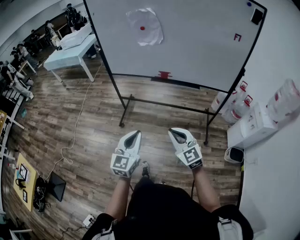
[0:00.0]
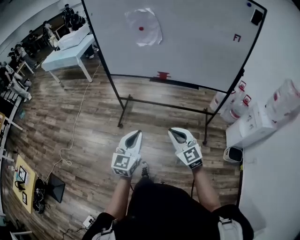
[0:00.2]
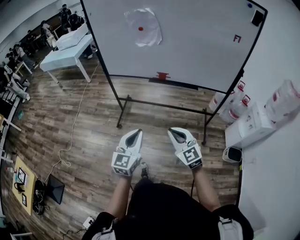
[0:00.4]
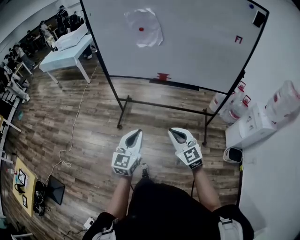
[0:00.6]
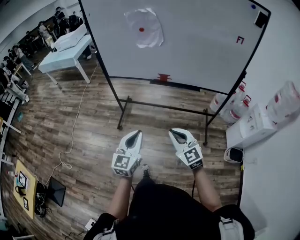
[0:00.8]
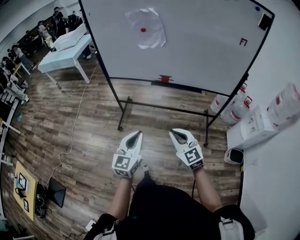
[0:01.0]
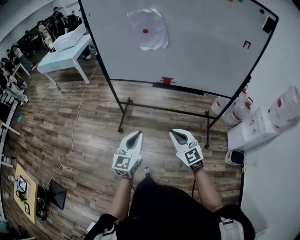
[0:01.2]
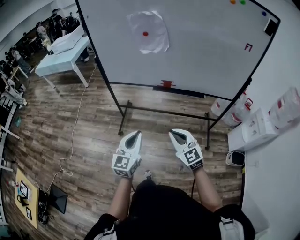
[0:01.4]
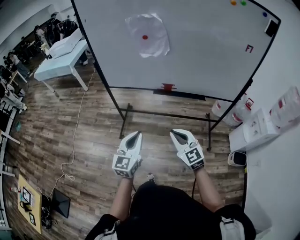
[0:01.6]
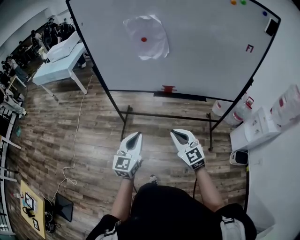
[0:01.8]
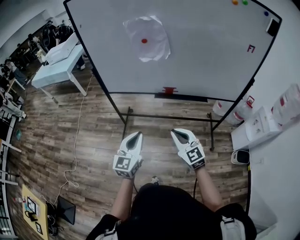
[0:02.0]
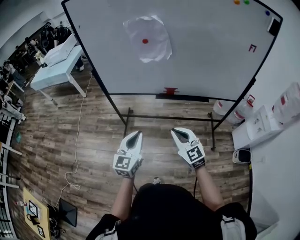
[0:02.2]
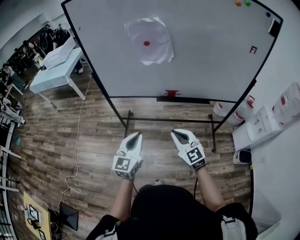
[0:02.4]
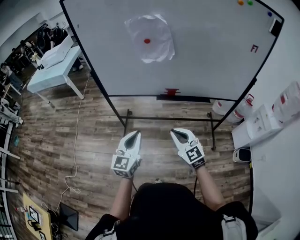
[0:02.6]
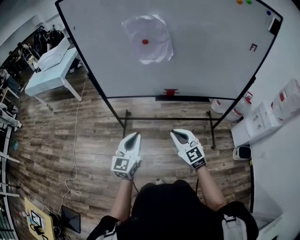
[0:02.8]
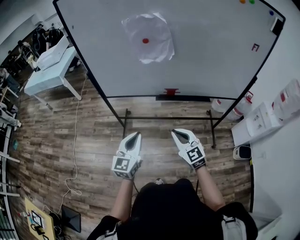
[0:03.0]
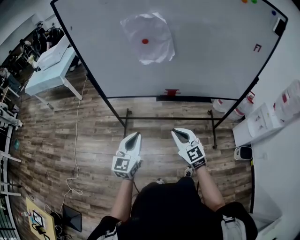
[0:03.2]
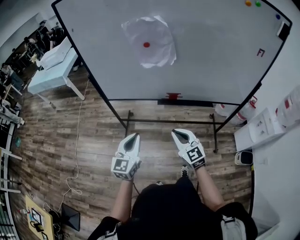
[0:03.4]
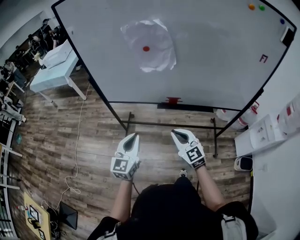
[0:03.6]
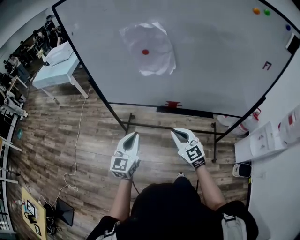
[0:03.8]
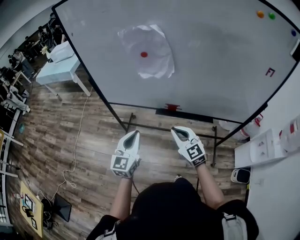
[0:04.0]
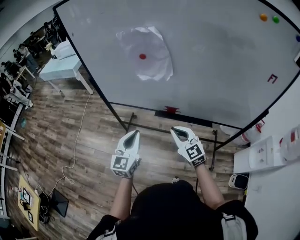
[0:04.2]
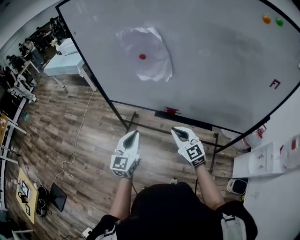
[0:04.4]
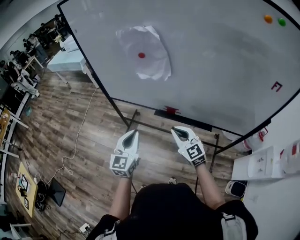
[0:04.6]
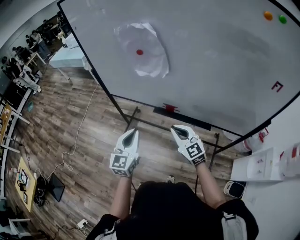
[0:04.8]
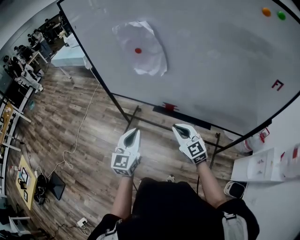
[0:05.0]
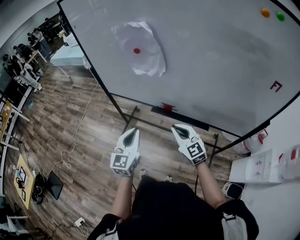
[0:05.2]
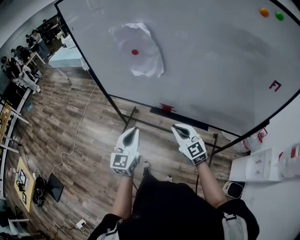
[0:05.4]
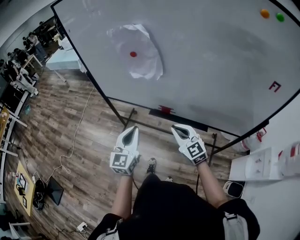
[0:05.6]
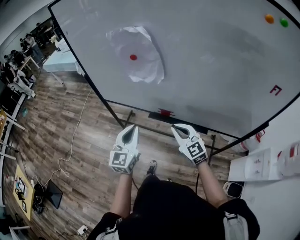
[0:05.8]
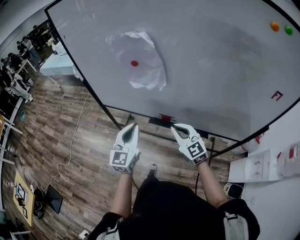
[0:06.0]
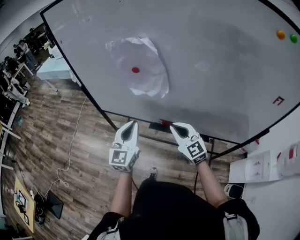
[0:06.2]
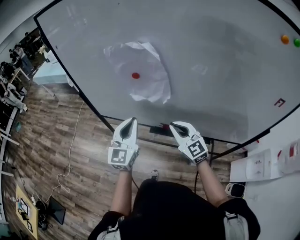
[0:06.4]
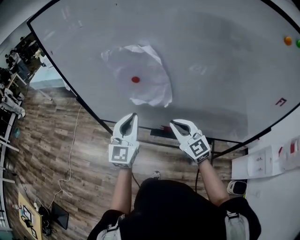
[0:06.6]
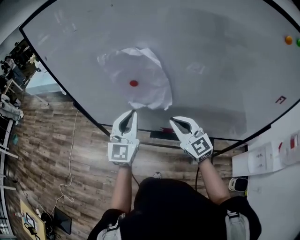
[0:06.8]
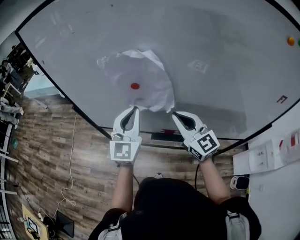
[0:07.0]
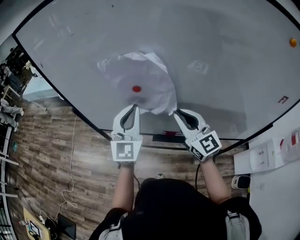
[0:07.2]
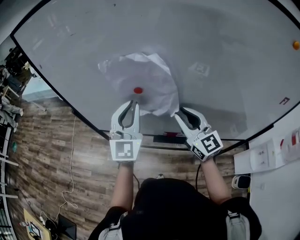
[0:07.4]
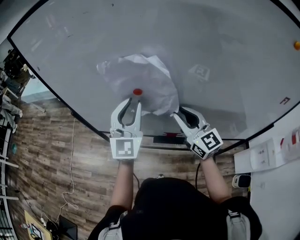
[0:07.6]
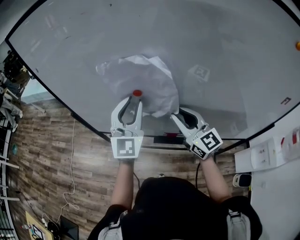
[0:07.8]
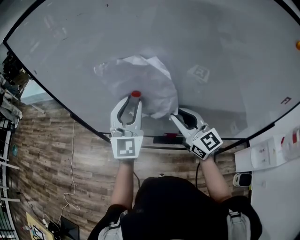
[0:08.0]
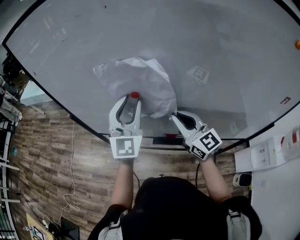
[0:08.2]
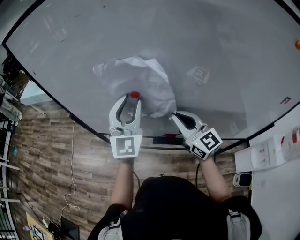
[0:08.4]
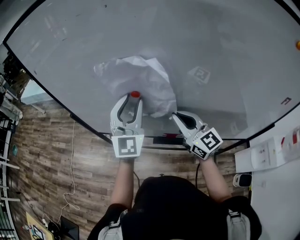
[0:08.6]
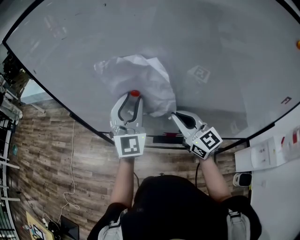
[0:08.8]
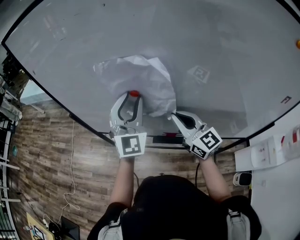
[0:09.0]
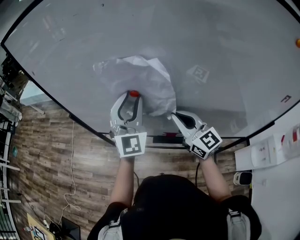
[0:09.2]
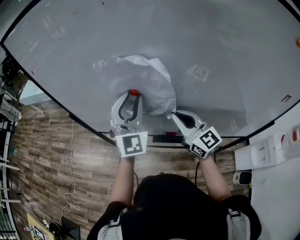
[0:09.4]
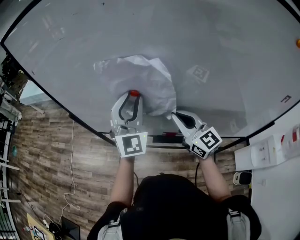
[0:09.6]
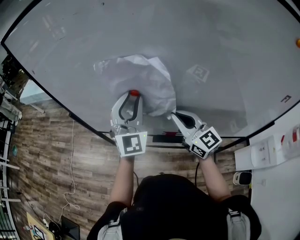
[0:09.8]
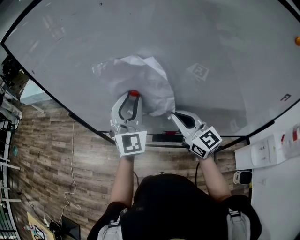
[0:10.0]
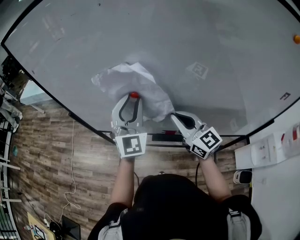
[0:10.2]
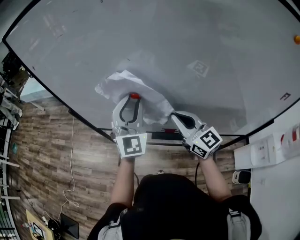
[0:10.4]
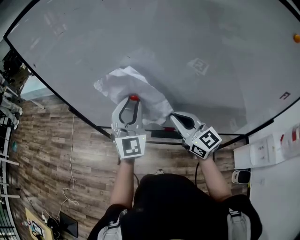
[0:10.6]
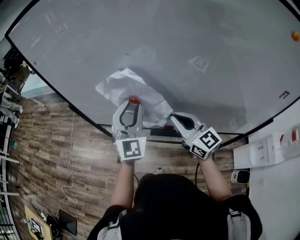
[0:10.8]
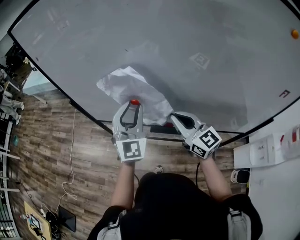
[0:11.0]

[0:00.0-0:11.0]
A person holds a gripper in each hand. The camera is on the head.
0:00.0 to 0:01.6: Both grippers move forward, roughly 20 cm.
0:01.6 to 0:03.2: The left gripper heads forward and to the left, covering some 15 cm. The right gripper heads forward, covering roughly 10 cm.
0:03.2 to 0:04.8: Both grippers move to the right and forward, approximately 20 cm. The right gripper rotates approximately 20 degrees. Meanwhile the left gripper changes its angle by about 20 degrees.
0:04.8 to 0:06.2: The grippers both shift forward by roughly 10 cm.
0:06.2 to 0:07.8: Both grippers move forward and upward, about 20 cm. The left gripper rotates some 20 degrees, and opens its fingers. Meanwhile the right gripper rotates some 20 degrees, and opens up.
0:07.8 to 0:09.4: The right gripper closes up.
0:09.4 to 0:11.0: The left gripper heads backward and downward, covering approximately 10 cm; the right gripper moves backward, about 5 cm.

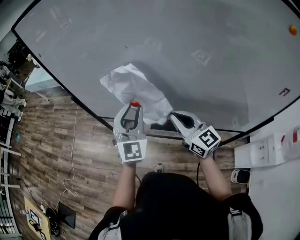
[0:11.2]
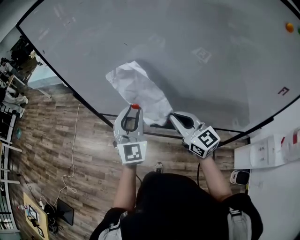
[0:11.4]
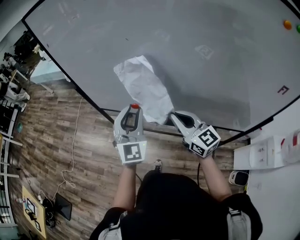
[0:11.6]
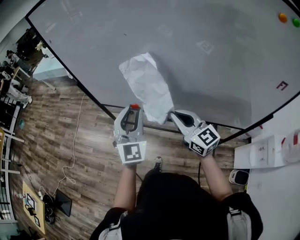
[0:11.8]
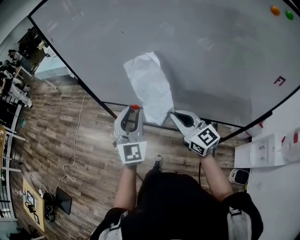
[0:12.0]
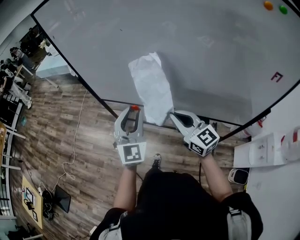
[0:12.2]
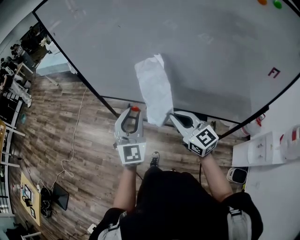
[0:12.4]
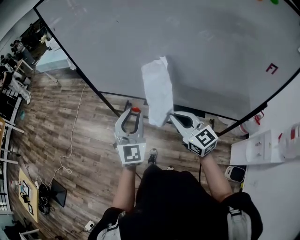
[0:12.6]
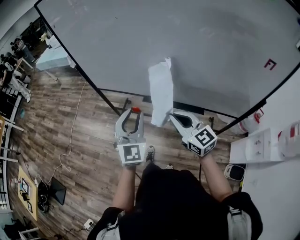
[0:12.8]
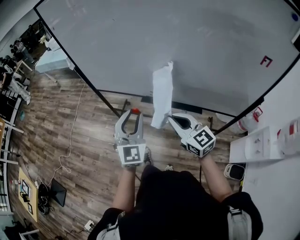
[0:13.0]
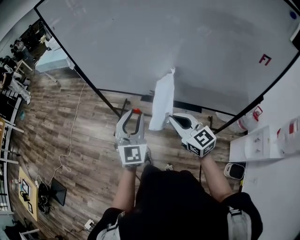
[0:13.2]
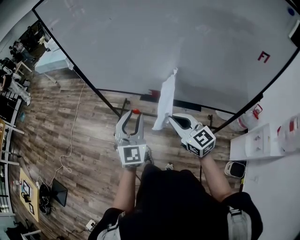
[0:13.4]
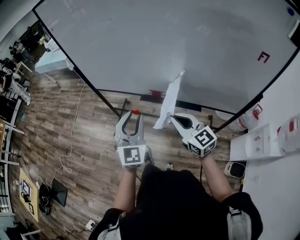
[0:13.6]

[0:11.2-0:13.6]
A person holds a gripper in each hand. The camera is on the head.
0:11.2 to 0:12.4: Both grippers travel together backward, roughly 15 cm.
0:12.4 to 0:13.6: Both grippers move backward, some 10 cm.

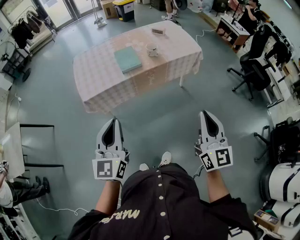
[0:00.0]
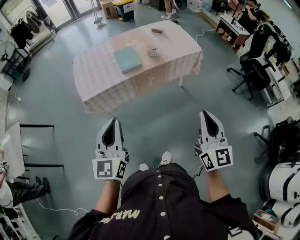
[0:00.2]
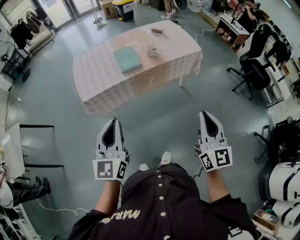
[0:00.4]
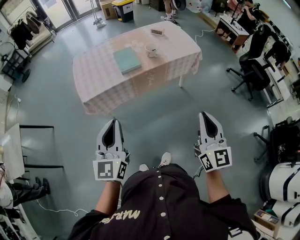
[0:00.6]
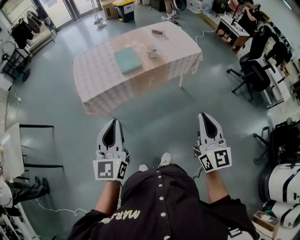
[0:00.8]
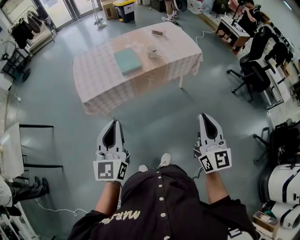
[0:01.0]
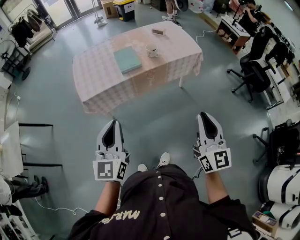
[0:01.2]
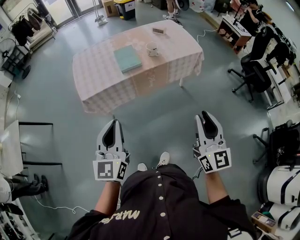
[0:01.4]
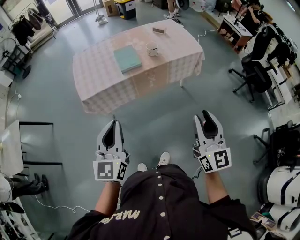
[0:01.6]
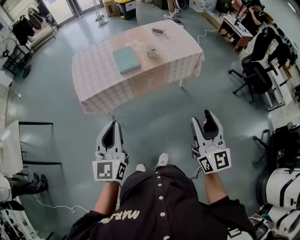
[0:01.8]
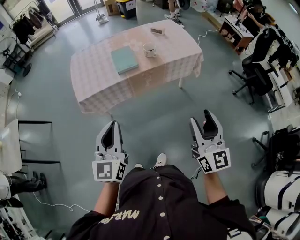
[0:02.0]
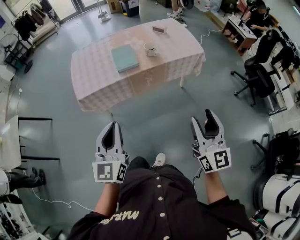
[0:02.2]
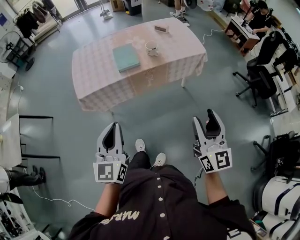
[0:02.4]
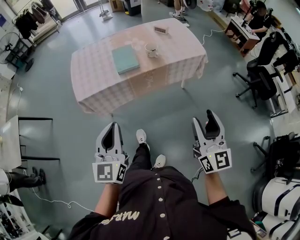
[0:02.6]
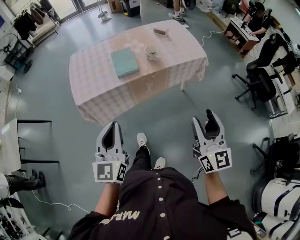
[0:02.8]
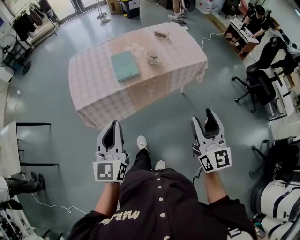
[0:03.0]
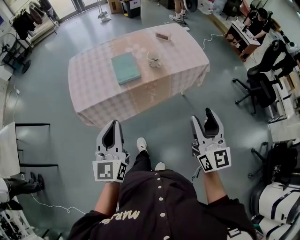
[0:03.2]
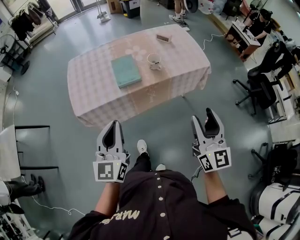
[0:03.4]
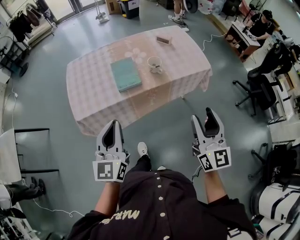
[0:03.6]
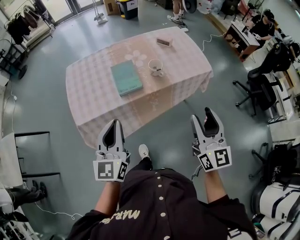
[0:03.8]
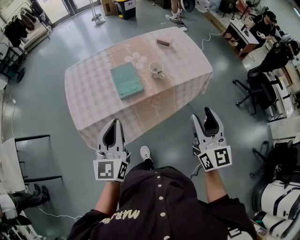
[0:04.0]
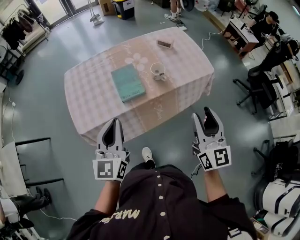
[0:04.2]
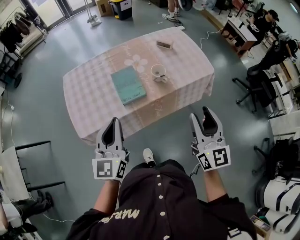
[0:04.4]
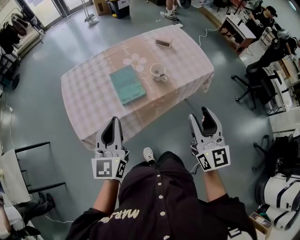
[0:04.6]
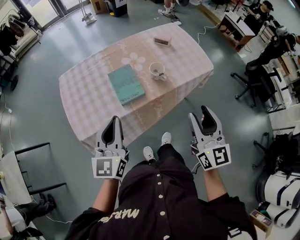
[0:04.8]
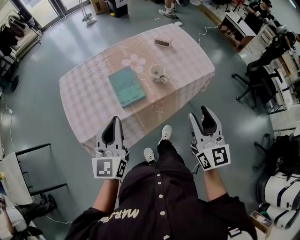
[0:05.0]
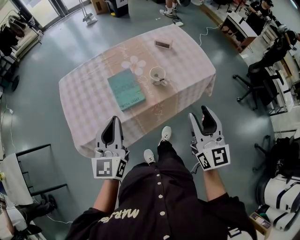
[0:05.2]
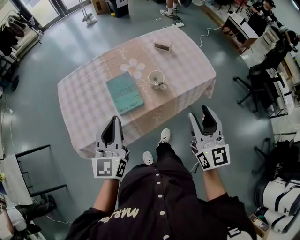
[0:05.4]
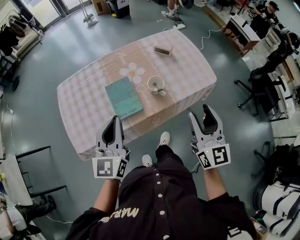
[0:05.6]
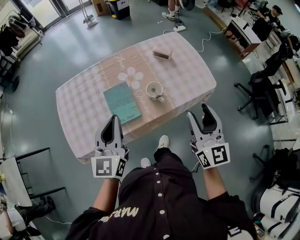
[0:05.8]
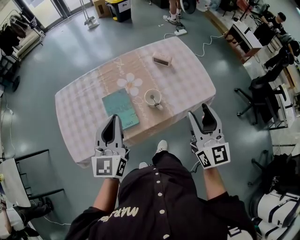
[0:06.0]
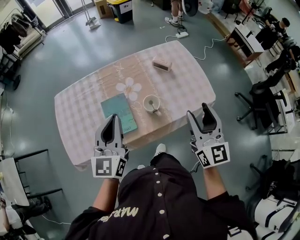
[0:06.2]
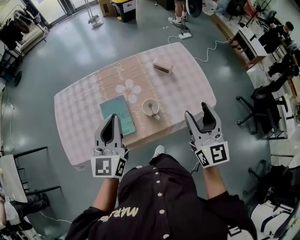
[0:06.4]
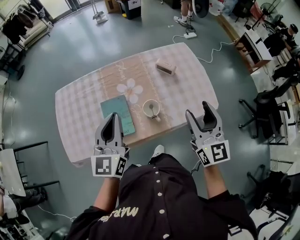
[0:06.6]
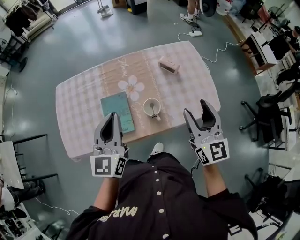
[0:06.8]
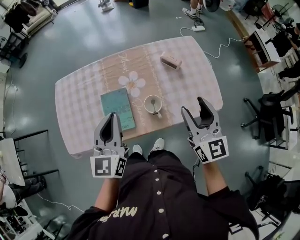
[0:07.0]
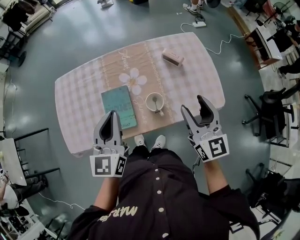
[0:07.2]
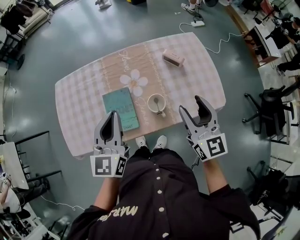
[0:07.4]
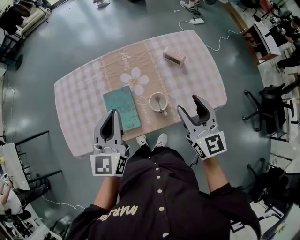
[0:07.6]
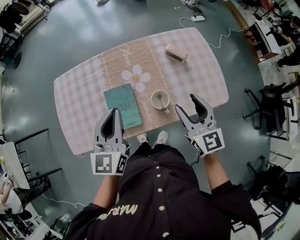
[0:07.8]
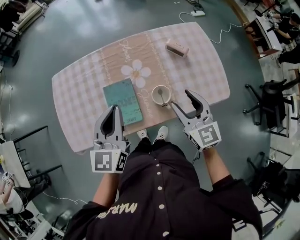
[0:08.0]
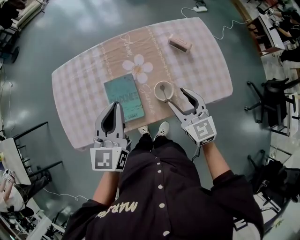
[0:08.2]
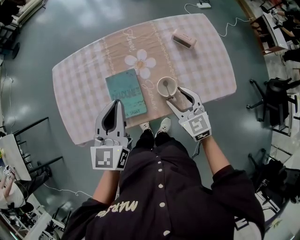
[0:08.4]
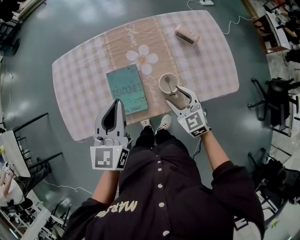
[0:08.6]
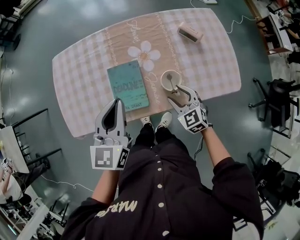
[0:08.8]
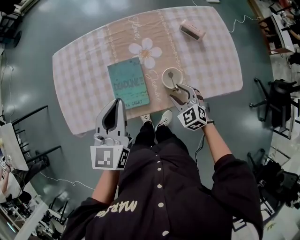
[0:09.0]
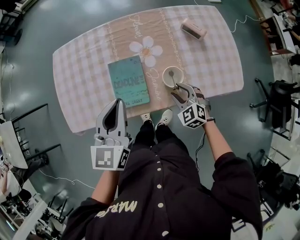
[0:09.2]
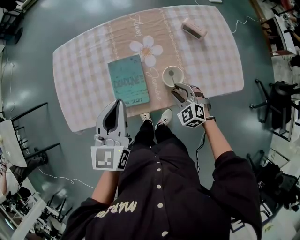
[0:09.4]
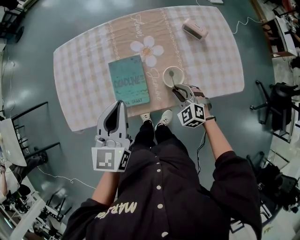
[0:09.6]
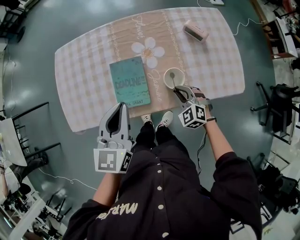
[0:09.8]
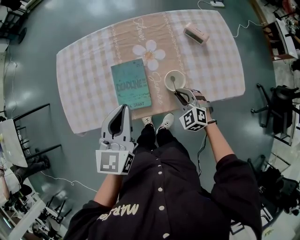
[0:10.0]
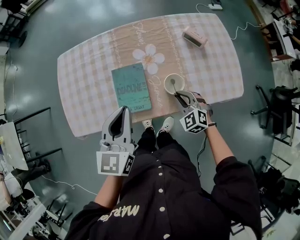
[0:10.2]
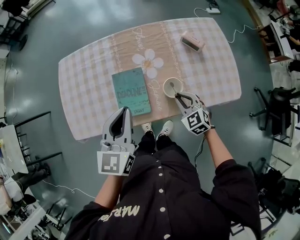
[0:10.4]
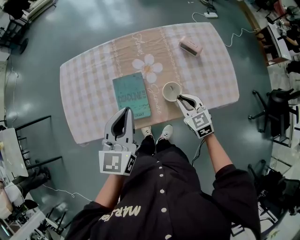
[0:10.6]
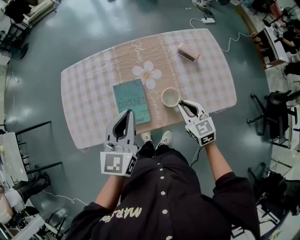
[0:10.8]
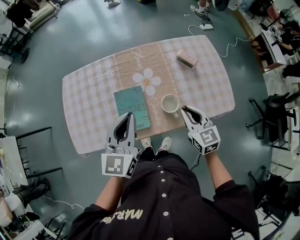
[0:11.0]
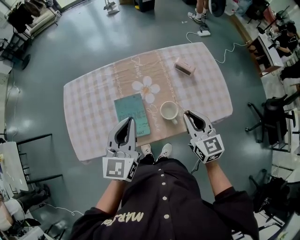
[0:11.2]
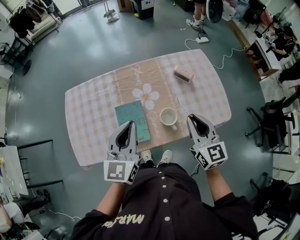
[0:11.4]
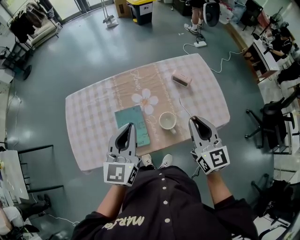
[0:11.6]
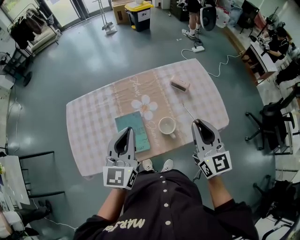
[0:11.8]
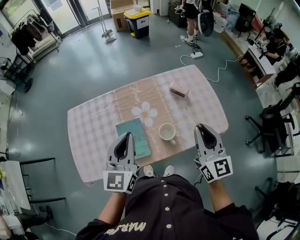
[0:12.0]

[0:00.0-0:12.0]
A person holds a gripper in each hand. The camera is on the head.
0:00.0 to 0:01.6: The right gripper opens its fingers.
0:01.6 to 0:03.0: The two grippers go about 10 cm forward. The right gripper opens up.
0:03.0 to 0:04.4: The left gripper shifts some 20 cm forward. The right gripper is displaced forward and to the left by some 20 cm.
0:04.4 to 0:06.0: Both grippers travel together forward, approximately 20 cm.
0:06.0 to 0:07.6: The left gripper travels forward by some 10 cm; the right gripper is displaced forward and downward by about 15 cm.
0:07.6 to 0:09.0: The right gripper moves downward, some 25 cm, and points its fingers approximately 30 degrees further downward. The left gripper is displaced downward by approximately 5 cm.
0:09.0 to 0:10.4: The right gripper closes up.
0:10.4 to 0:12.0: The left gripper travels upward by about 10 cm. Meanwhile the right gripper heads upward, covering about 30 cm, and angles its fingers upward, by about 40 degrees.
